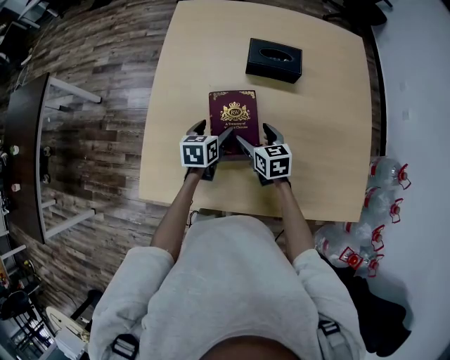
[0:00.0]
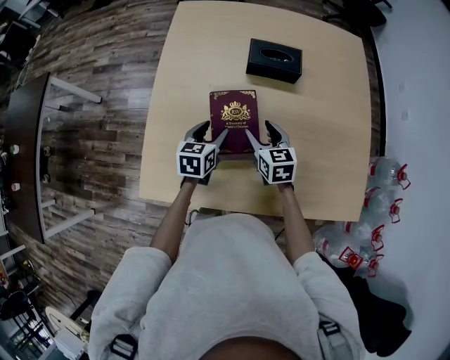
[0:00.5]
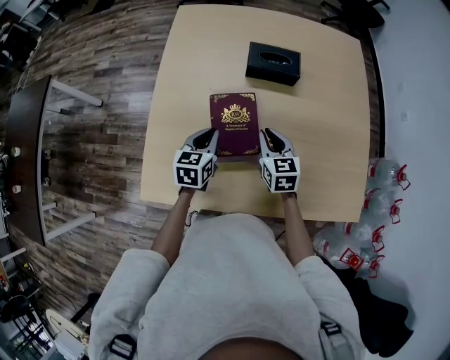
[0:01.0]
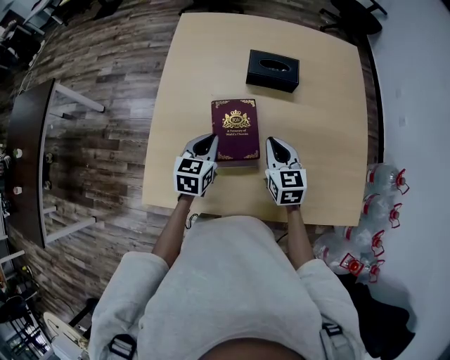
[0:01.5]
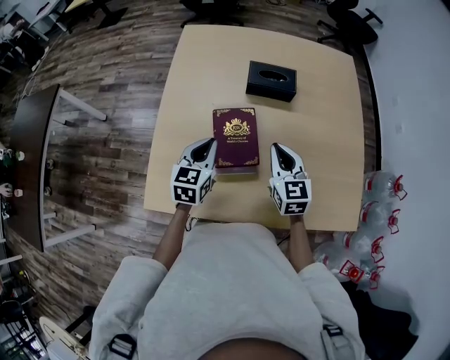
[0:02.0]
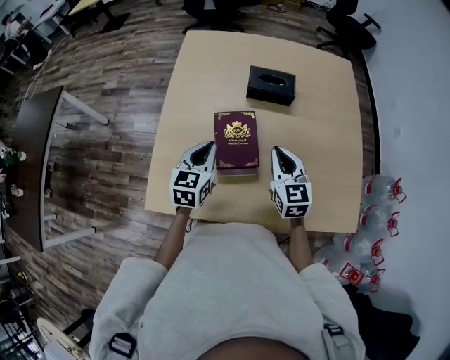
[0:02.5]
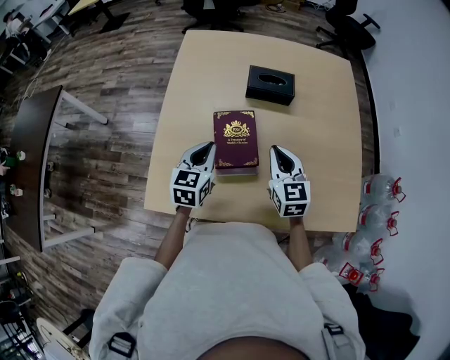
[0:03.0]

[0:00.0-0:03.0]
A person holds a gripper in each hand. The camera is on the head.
0:00.0 to 0:01.5: The right gripper goes some 10 cm upward and to the right, and closes. Meanwhile the left gripper is displaced upward by roughly 10 cm, and closes its fingers.
0:01.5 to 0:03.0: Both grippers travel together upward, some 5 cm.

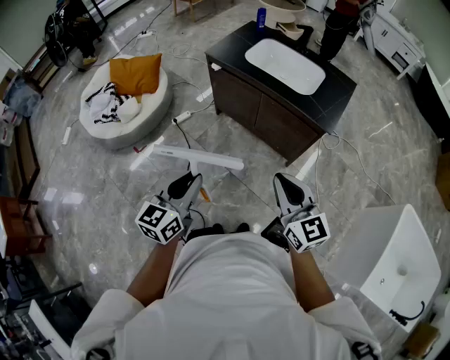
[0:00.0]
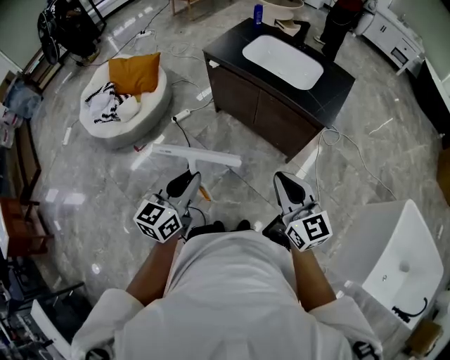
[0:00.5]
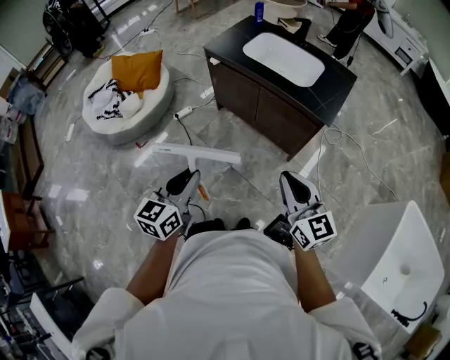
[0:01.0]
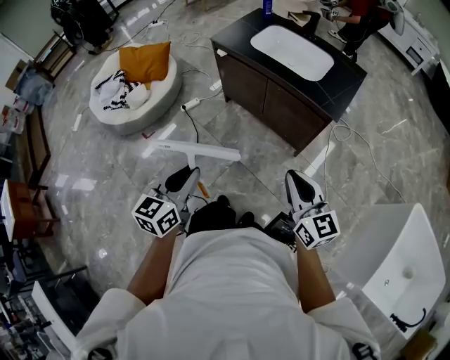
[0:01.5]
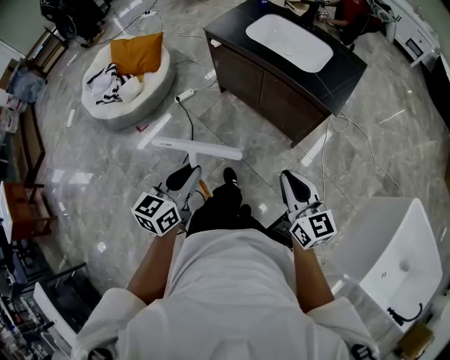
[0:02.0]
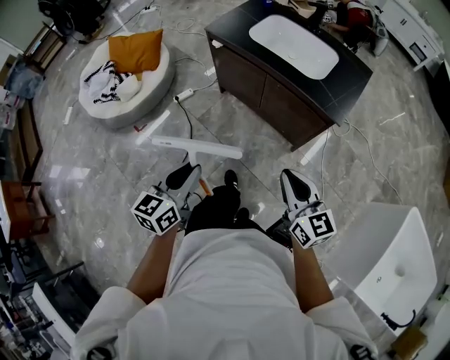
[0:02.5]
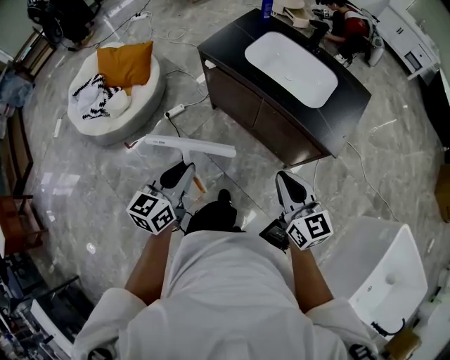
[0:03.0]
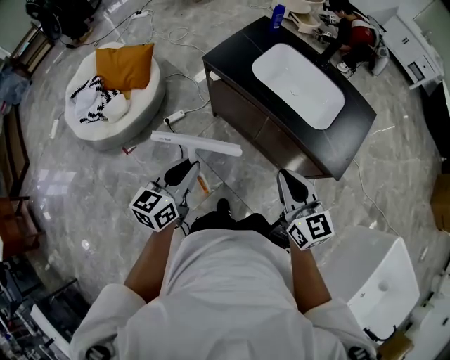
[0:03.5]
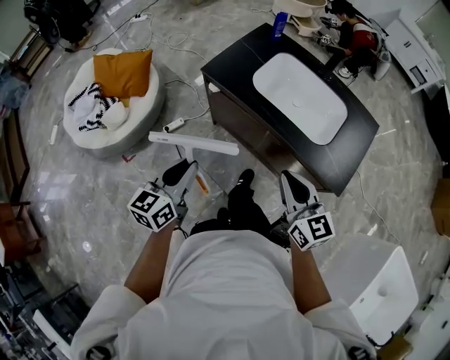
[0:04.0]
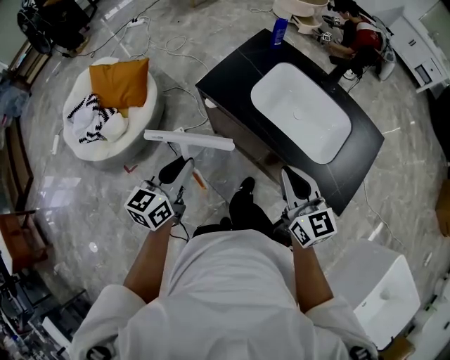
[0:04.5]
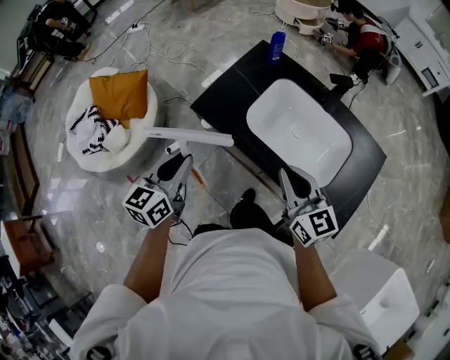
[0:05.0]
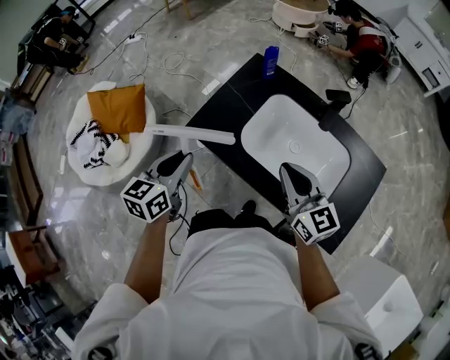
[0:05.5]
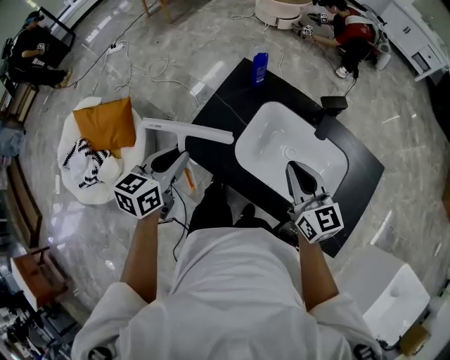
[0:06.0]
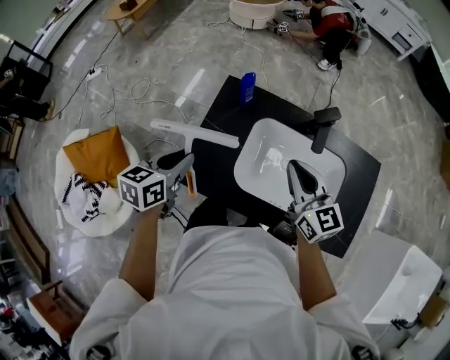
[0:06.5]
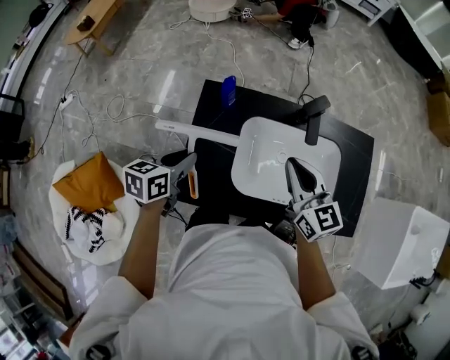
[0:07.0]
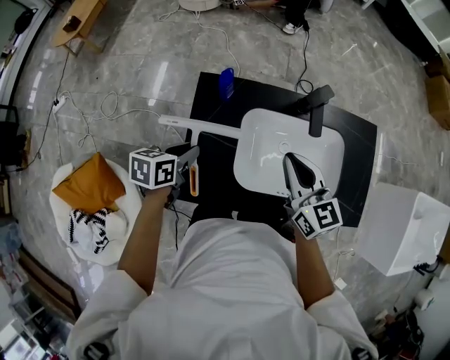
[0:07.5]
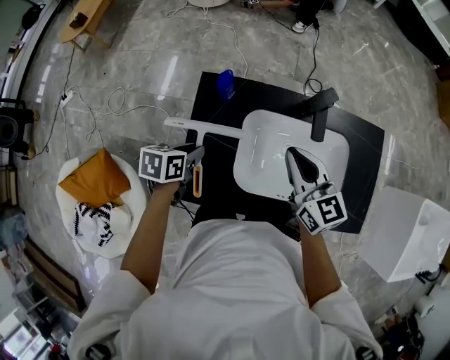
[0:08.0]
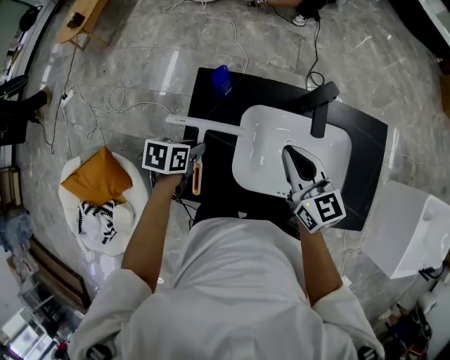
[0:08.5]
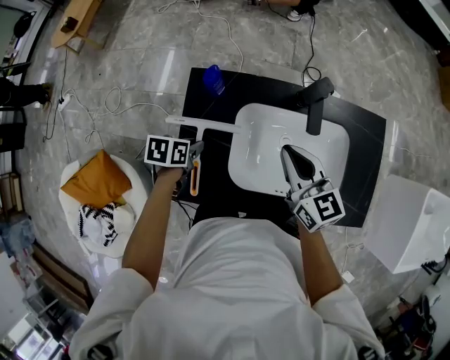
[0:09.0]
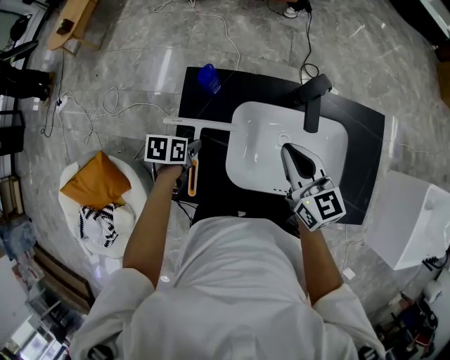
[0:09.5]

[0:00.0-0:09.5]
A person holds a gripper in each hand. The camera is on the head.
0:00.0 to 0:02.0: The left gripper shifts by some 5 cm; the right gripper is displaced downward and to the right by about 10 cm.
0:02.0 to 0:04.0: The grippers both shift forward by some 35 cm.
0:04.0 to 0:05.5: Both grippers travel together forward, roughly 30 cm.
0:05.5 to 0:07.5: The right gripper changes place by roughly 15 cm, and rotates roughly 30 degrees. Meanwhile the left gripper ends up about 30 cm from where it was, and rotates about 50 degrees.
0:07.5 to 0:09.5: The right gripper changes place by approximately 5 cm. Meanwhile the left gripper moves downward, about 10 cm.

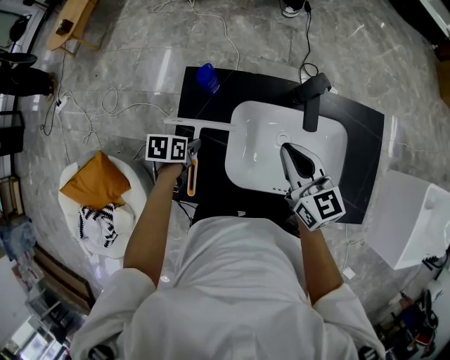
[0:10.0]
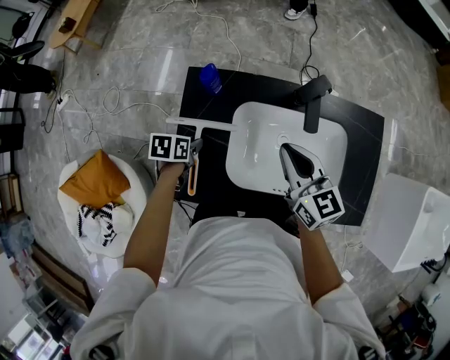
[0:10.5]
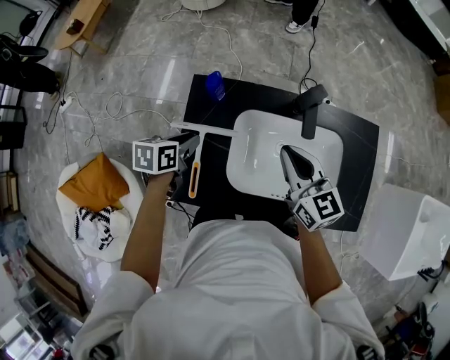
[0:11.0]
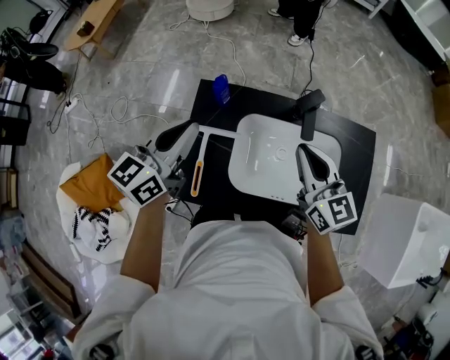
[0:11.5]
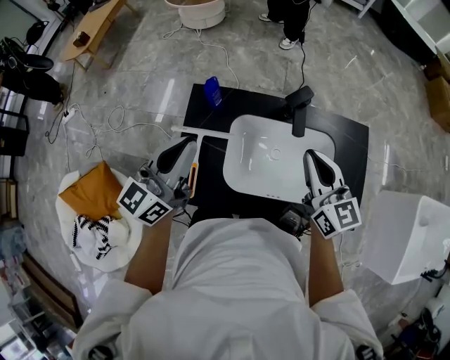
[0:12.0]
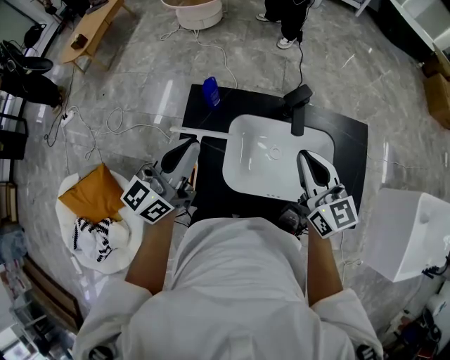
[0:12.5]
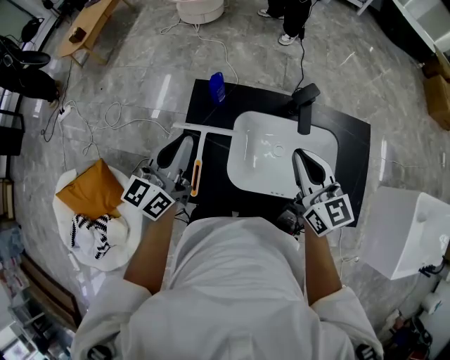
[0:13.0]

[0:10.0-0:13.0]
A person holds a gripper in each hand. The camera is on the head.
0:10.0 to 0:11.5: The right gripper is displaced upward by some 10 cm; the left gripper moves upward, roughly 30 cm, and angles its fingers upward, by some 50 degrees.
0:11.5 to 0:13.0: The left gripper shifts by some 5 cm.

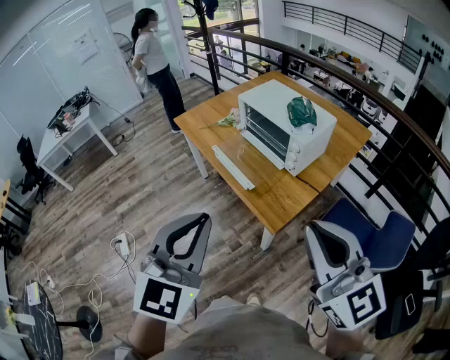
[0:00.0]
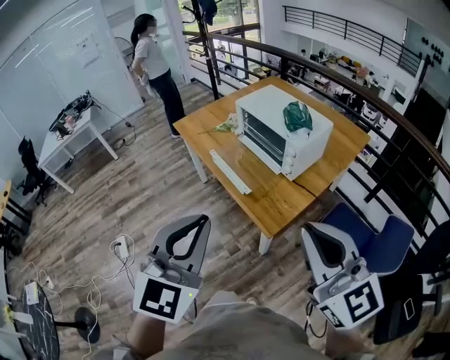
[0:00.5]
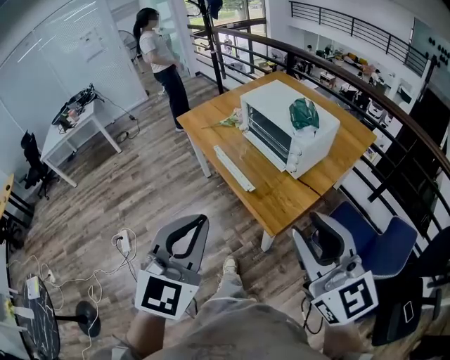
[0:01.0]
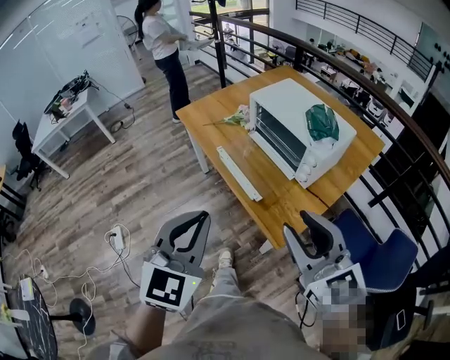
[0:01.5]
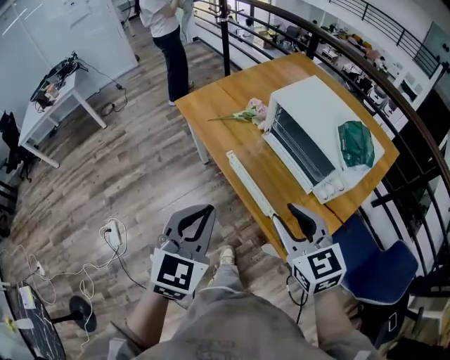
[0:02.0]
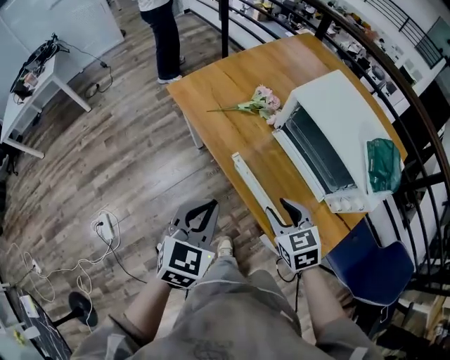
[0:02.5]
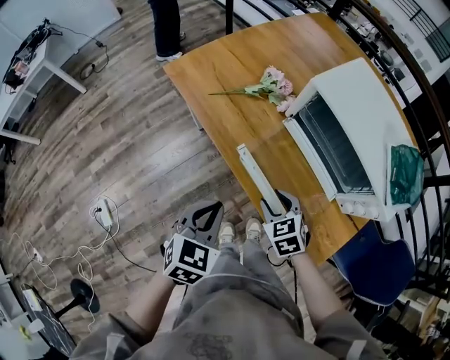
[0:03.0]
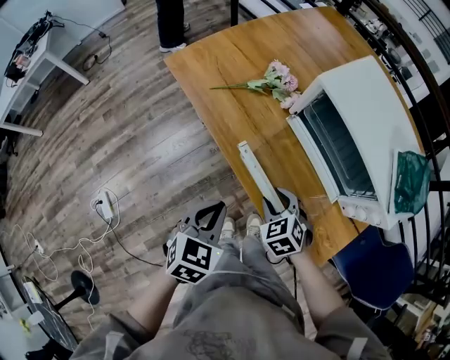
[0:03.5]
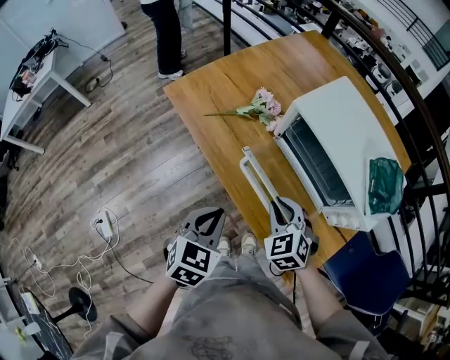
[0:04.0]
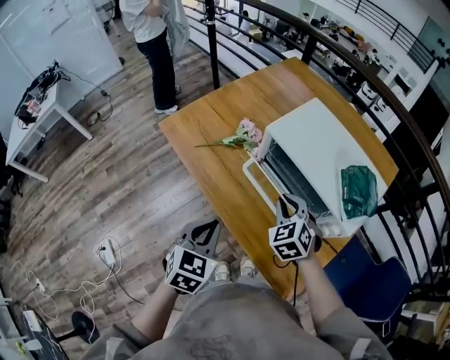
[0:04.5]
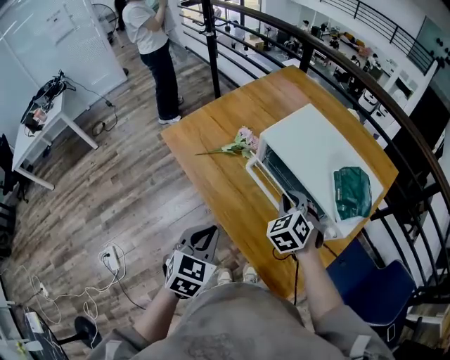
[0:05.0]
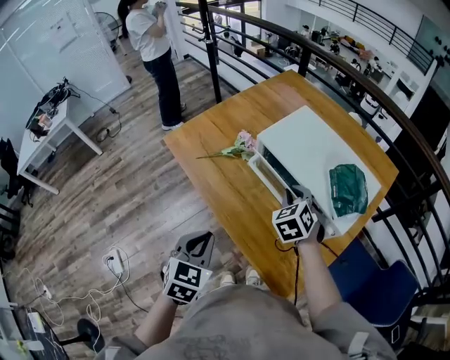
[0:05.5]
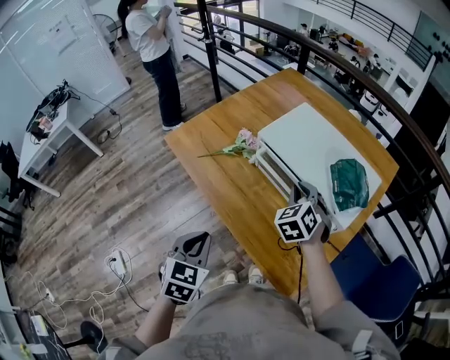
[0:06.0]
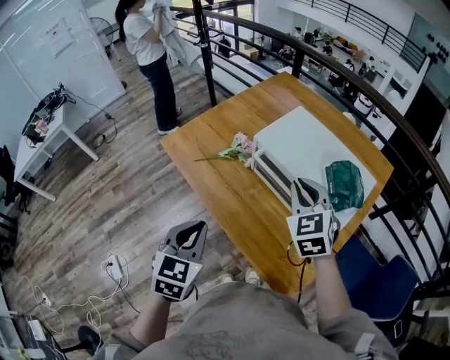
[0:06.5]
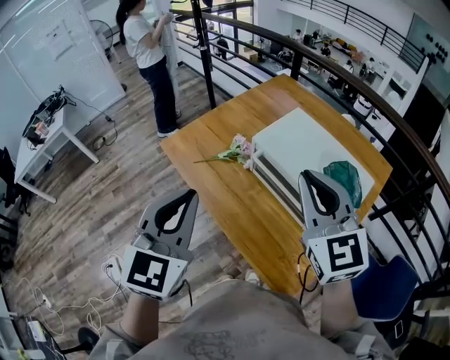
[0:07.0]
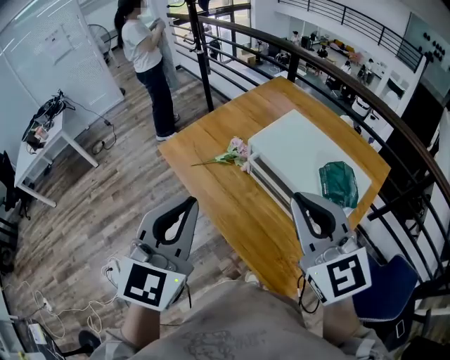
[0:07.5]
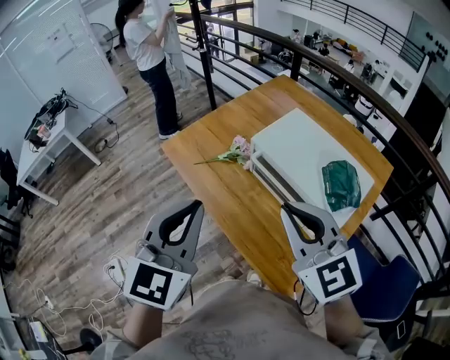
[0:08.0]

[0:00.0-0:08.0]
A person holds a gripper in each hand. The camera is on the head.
0:00.0 to 0:02.0: The two grippers go approximately 30 cm forward and downward. The right gripper changes its angle by roughly 30 degrees, and opens.
0:02.0 to 0:04.0: The two grippers go some 20 cm downward and forward. The left gripper rotates some 20 degrees; the right gripper swivels roughly 30 degrees.
0:04.0 to 0:06.0: The left gripper travels upward by roughly 5 cm. Meanwhile the right gripper travels forward, to the right and upward by approximately 15 cm, and changes its angle by approximately 20 degrees.
0:06.0 to 0:08.0: The right gripper moves upward and backward, roughly 25 cm, and rotates some 50 degrees. Meanwhile the left gripper goes about 20 cm upward, and changes its angle by roughly 30 degrees.

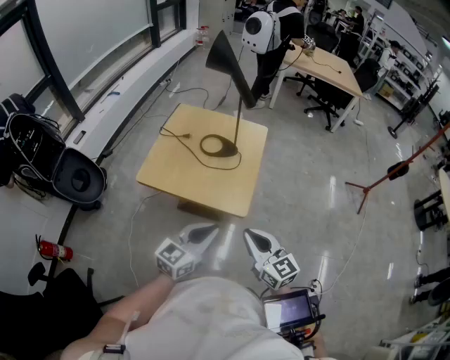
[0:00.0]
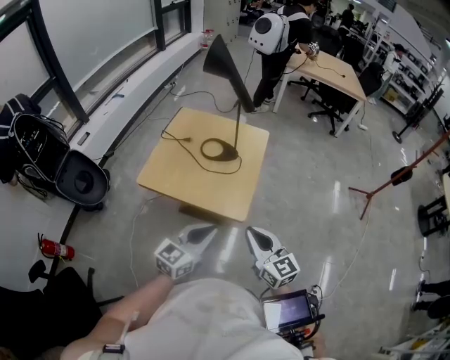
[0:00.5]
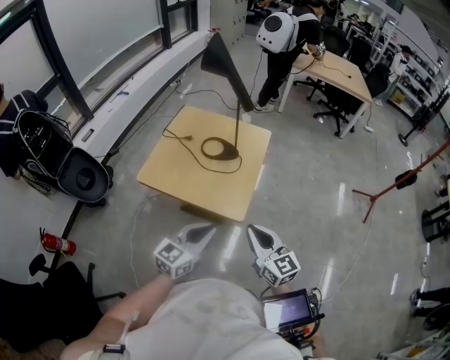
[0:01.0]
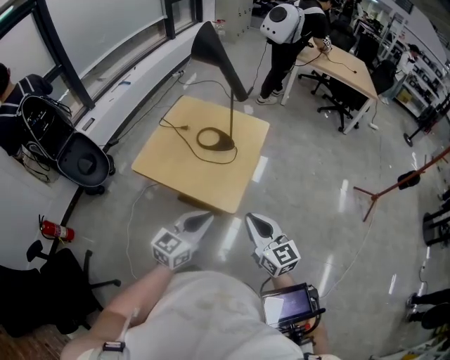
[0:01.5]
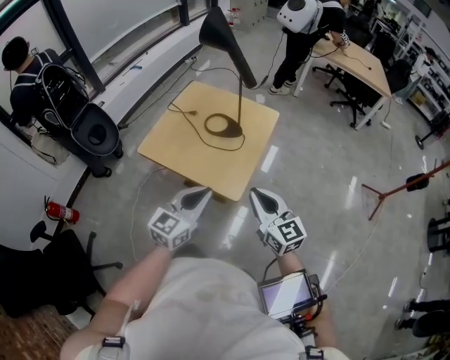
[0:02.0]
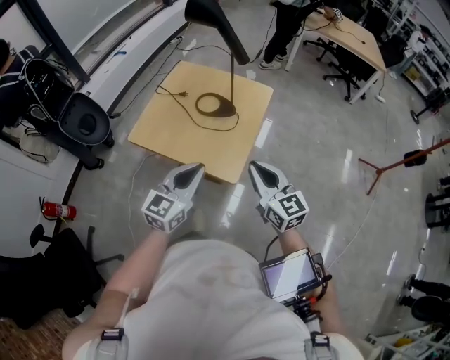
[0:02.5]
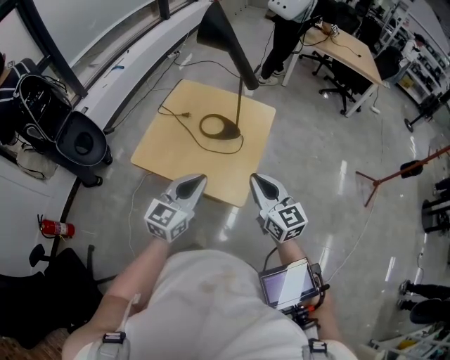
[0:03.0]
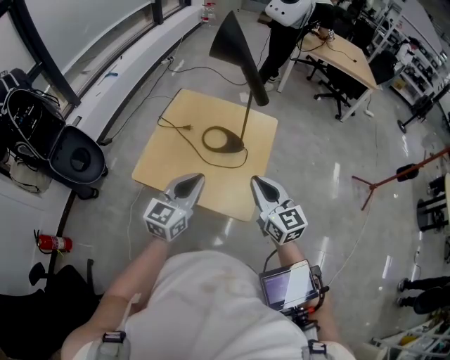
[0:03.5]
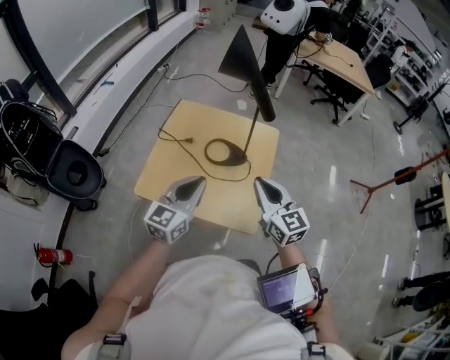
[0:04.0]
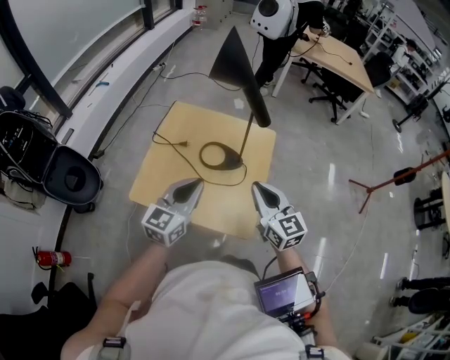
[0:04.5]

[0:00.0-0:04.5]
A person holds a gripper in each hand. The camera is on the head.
0:00.0 to 0:02.0: The left gripper changes place by approximately 5 cm. The right gripper goes roughly 10 cm to the right and forward.
0:02.0 to 0:04.5: The left gripper travels forward and to the left by roughly 25 cm. The right gripper travels forward by roughly 20 cm.
